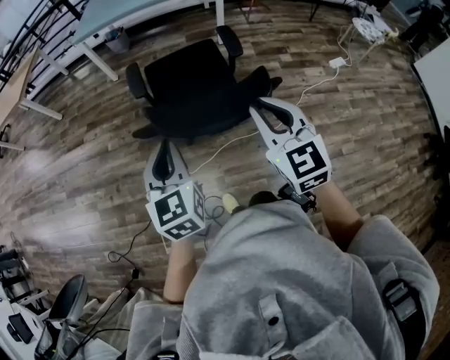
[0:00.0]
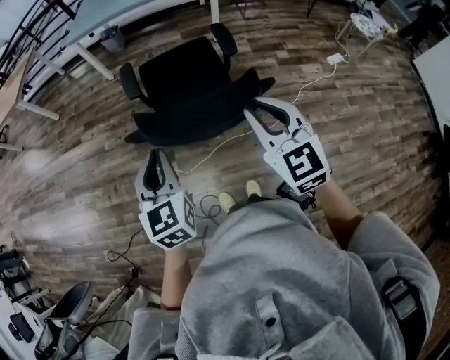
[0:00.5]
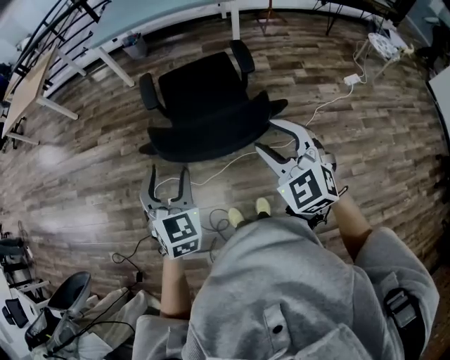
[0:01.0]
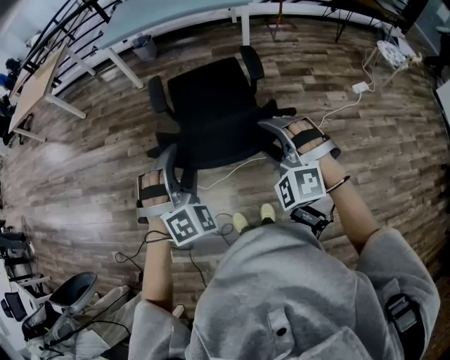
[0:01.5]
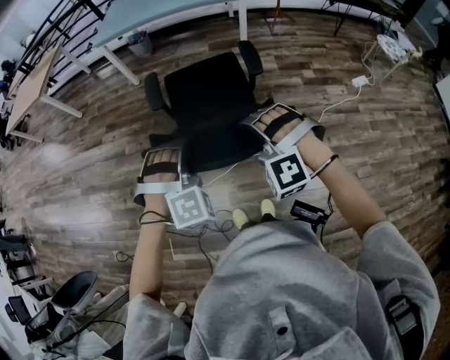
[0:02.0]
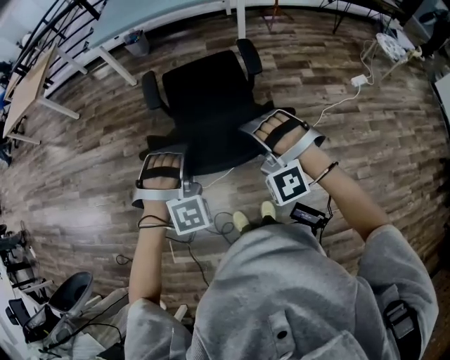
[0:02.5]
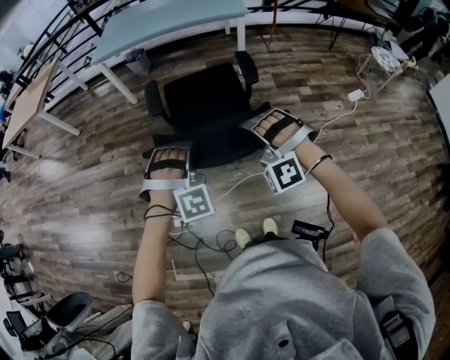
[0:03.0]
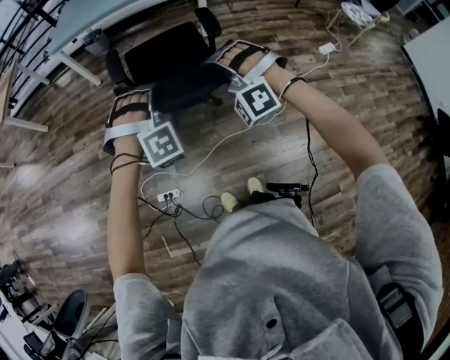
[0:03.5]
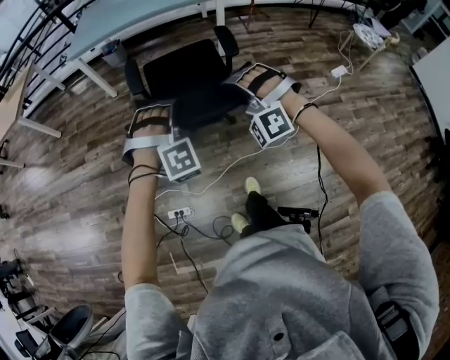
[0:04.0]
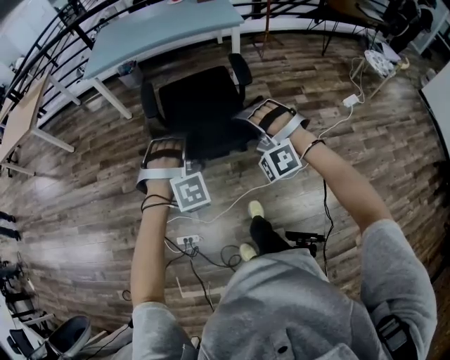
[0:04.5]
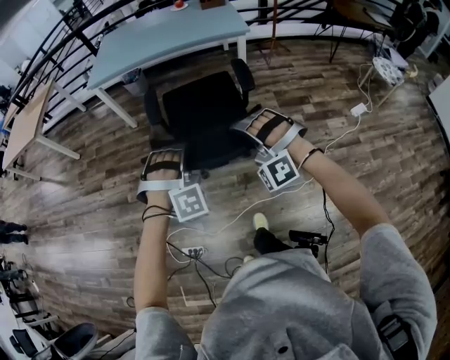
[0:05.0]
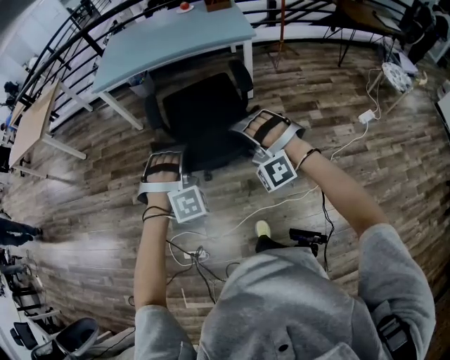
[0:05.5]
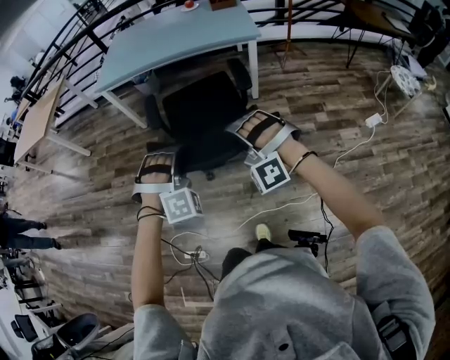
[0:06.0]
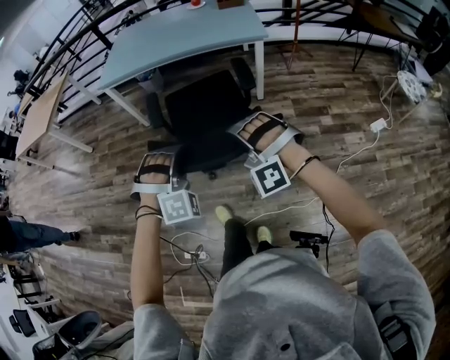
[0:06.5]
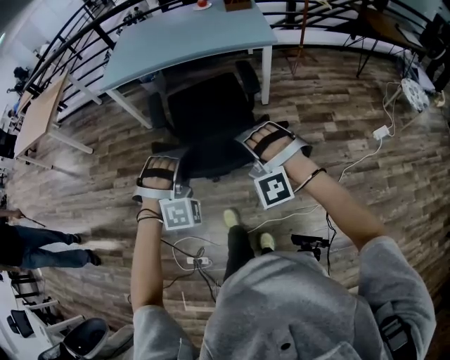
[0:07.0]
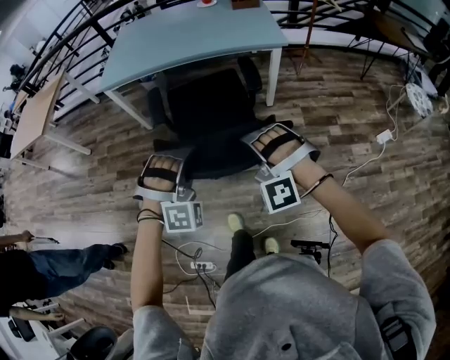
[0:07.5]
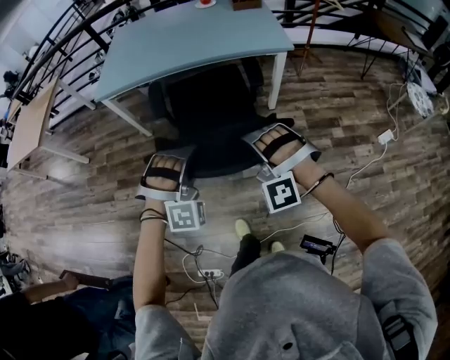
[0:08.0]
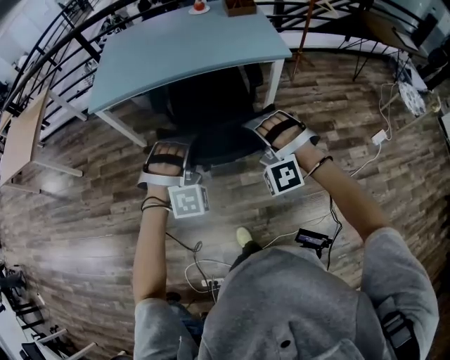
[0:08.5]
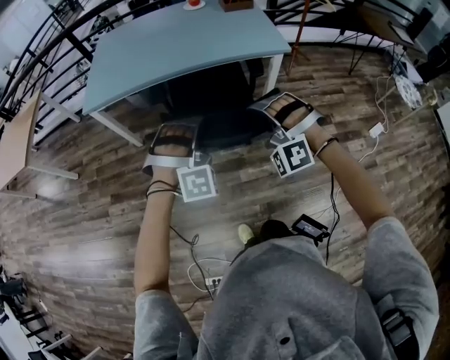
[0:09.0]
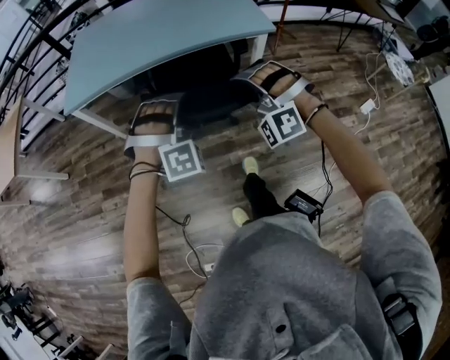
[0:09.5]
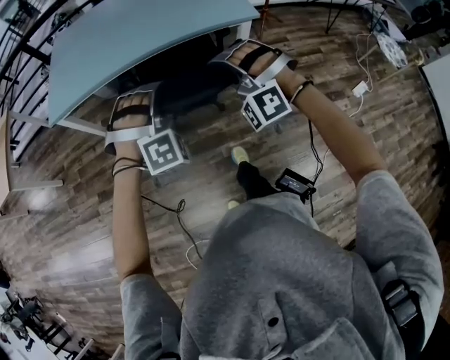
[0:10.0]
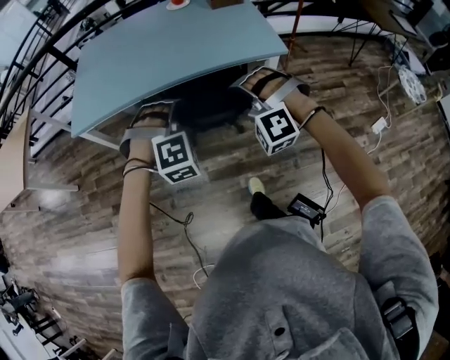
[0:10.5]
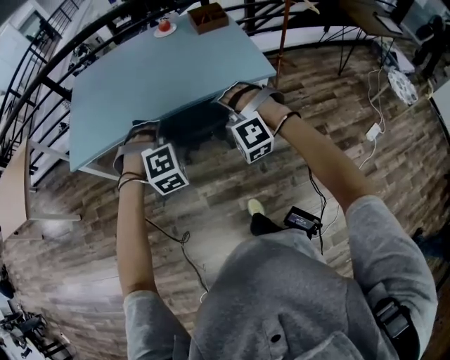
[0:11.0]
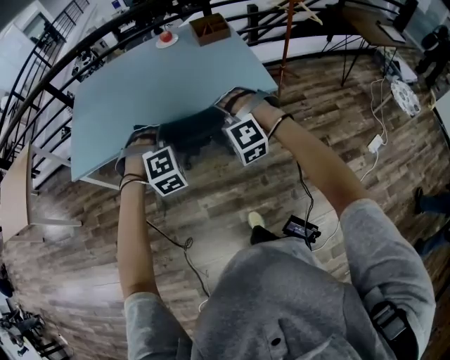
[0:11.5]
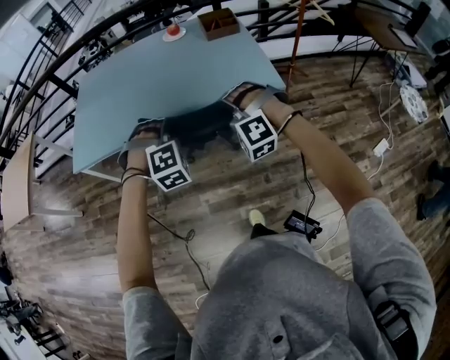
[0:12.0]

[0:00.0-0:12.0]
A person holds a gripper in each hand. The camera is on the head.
0.0 to 2.0 s: The left gripper travels to the right and downward by roughly 10 cm, twists roughly 90 degrees clockwise, seen from behind, and opens; the right gripper travels downward and forward by about 10 cm, rolls counterclockwise, seen from behind, by some 70 degrees, and opens.
2.0 to 4.0 s: Both grippers travel together forward, approximately 15 cm. The right gripper closes up; the left gripper closes.
4.0 to 6.0 s: Both grippers move forward, roughly 15 cm.
6.0 to 8.0 s: Both grippers move forward, some 20 cm.
8.0 to 10.0 s: The grippers both shift forward by roughly 20 cm.
10.0 to 12.0 s: Both grippers travel together forward, about 20 cm.

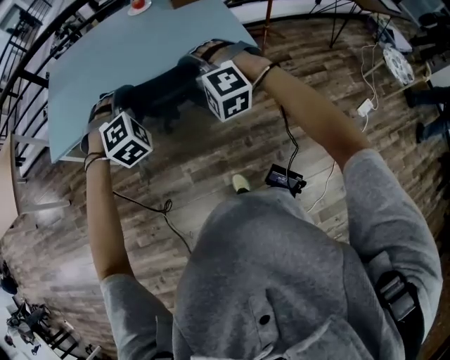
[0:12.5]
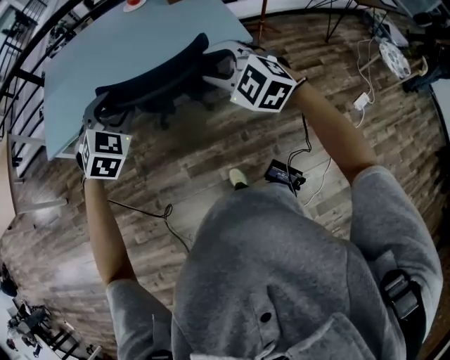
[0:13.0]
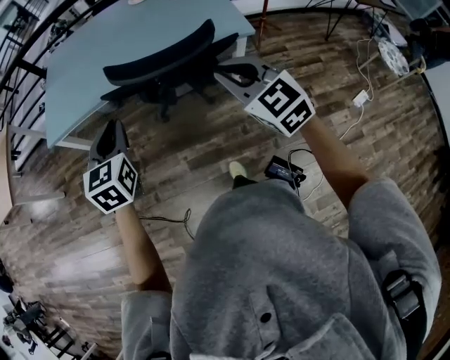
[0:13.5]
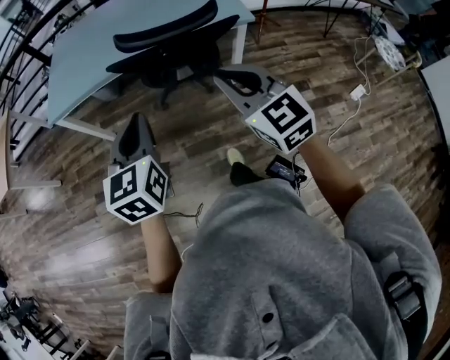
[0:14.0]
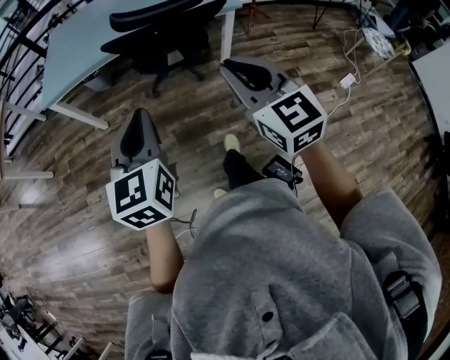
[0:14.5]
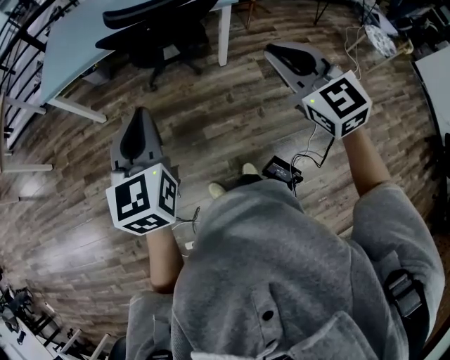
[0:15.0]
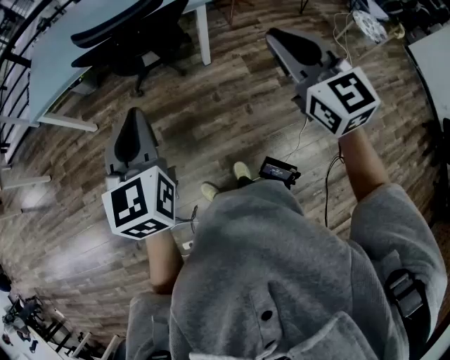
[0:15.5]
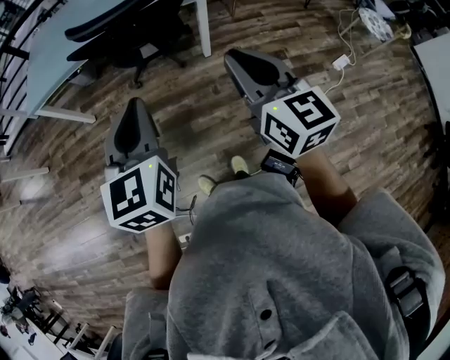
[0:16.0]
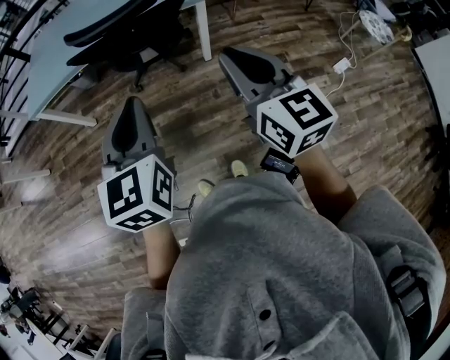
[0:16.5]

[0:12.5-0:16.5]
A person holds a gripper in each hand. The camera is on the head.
12.5 to 14.5 s: The grippers both shift backward by roughly 35 cm. The left gripper rotates around the line of its fingers by roughly 80 degrees, counterclockwise from behind, and closes. The right gripper twists approximately 70 degrees clockwise, seen from behind, and closes up.
14.5 to 16.5 s: Both grippers travel together to the right, approximately 15 cm.

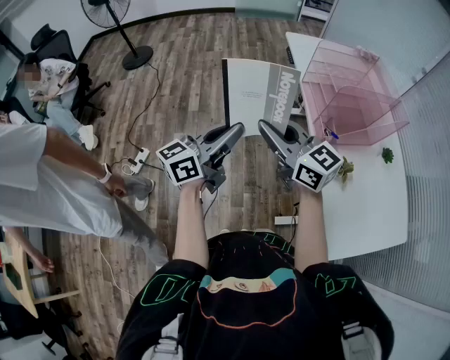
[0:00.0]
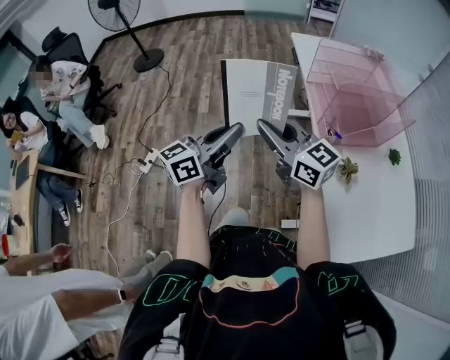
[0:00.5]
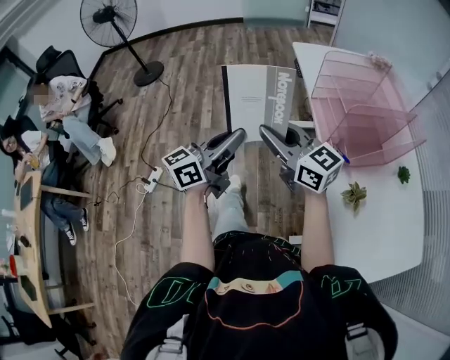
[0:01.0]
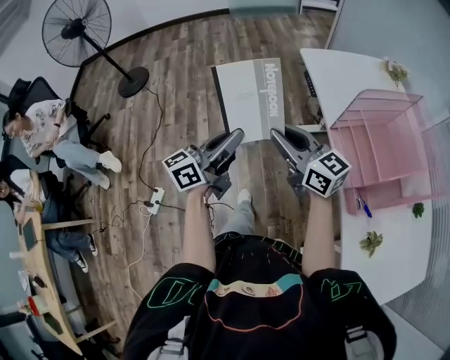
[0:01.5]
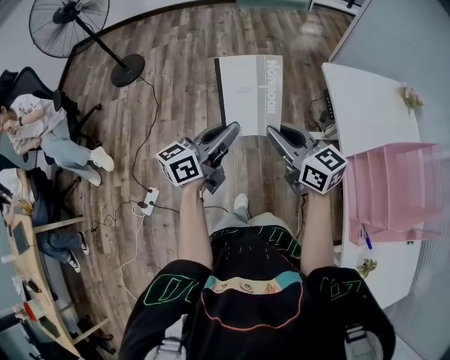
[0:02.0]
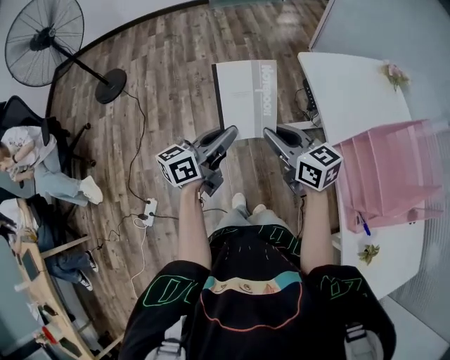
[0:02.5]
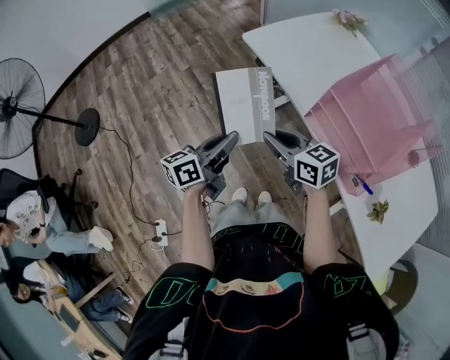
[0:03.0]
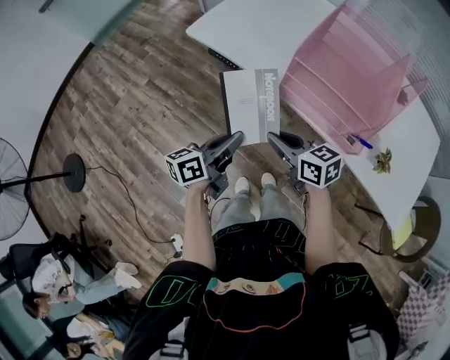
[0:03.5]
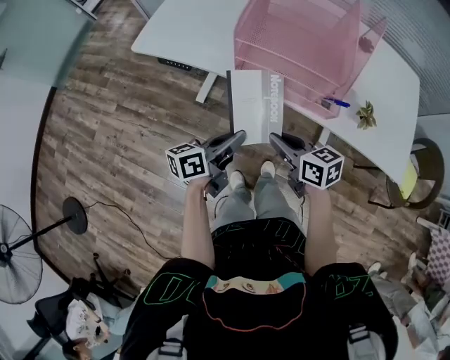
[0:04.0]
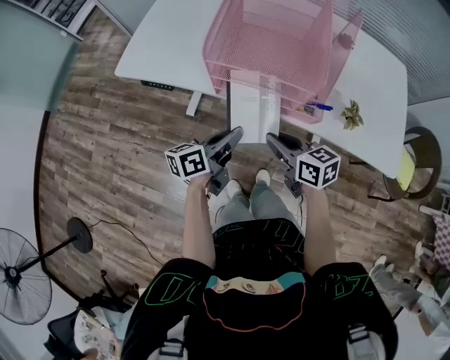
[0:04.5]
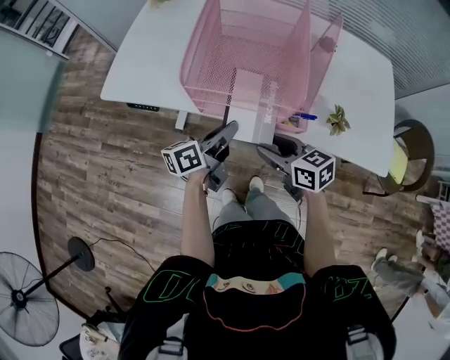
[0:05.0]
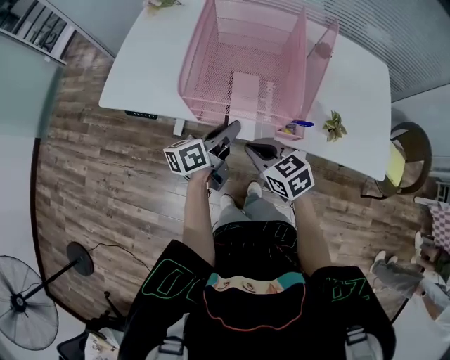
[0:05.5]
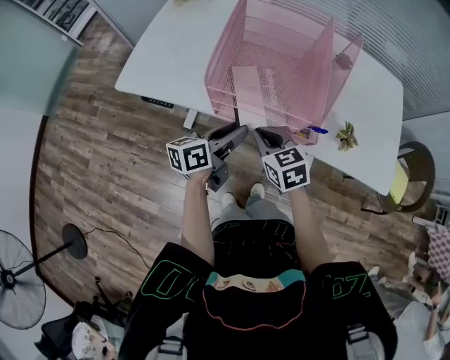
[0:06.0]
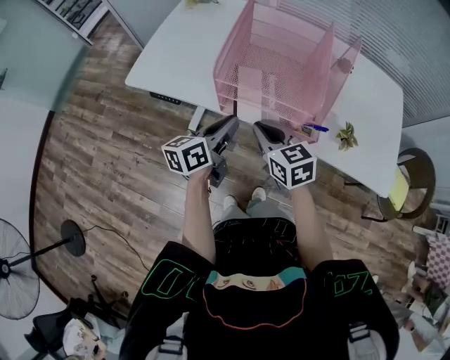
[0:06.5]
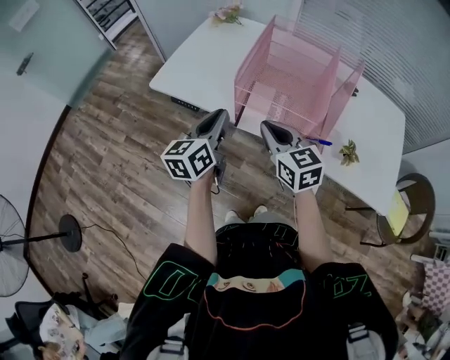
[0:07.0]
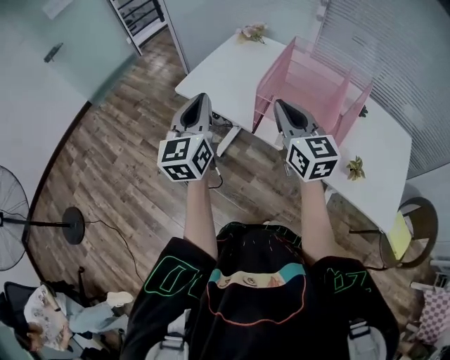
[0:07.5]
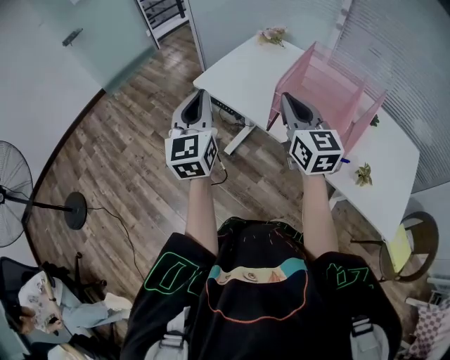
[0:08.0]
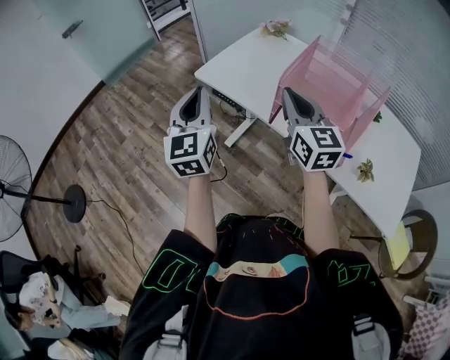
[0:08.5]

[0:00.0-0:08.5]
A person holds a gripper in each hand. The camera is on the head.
0.0 to 2.0 s: Both grippers are carried forward, approximately 50 cm.
2.0 to 4.0 s: The right gripper ends up some 35 cm from where it was, and turns by roughly 70 degrees, while the left gripper moves approximately 30 cm, and turns by roughly 70 degrees.
4.0 to 6.5 s: Both grippers move forward and upward, some 10 cm. The left gripper opens, then closes again. The right gripper turns by approximately 20 degrees, and opens, then closes once more.
6.5 to 8.5 s: The left gripper ends up roughly 30 cm from where it was, and turns by about 70 degrees. The right gripper moves upward, approximately 20 cm, and changes its angle by about 30 degrees.

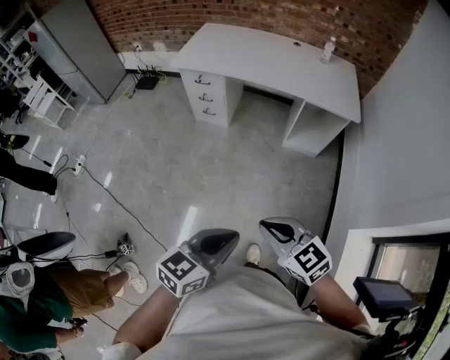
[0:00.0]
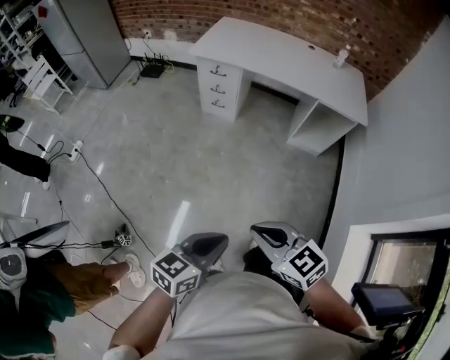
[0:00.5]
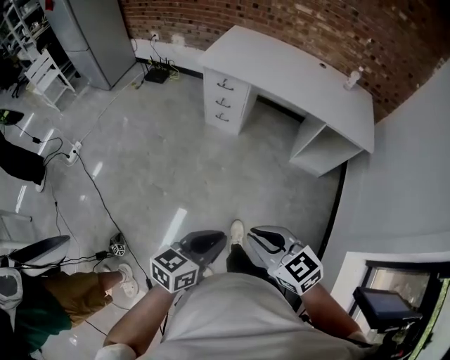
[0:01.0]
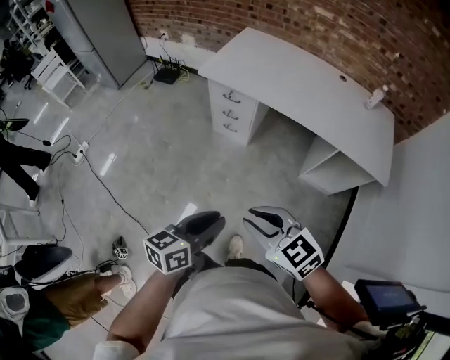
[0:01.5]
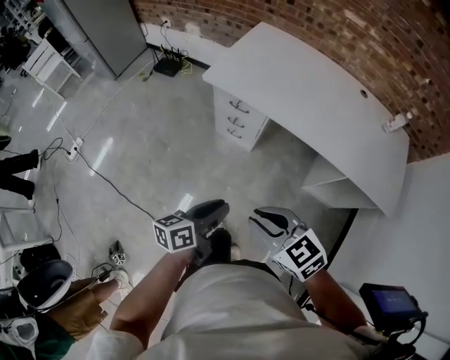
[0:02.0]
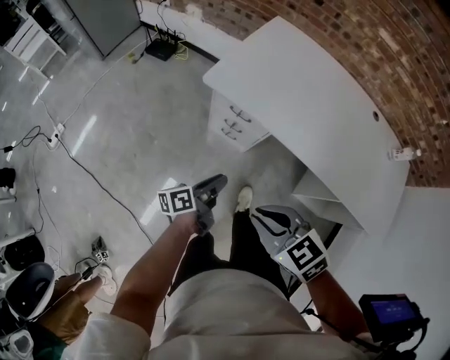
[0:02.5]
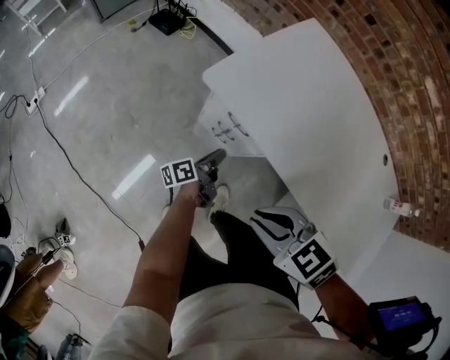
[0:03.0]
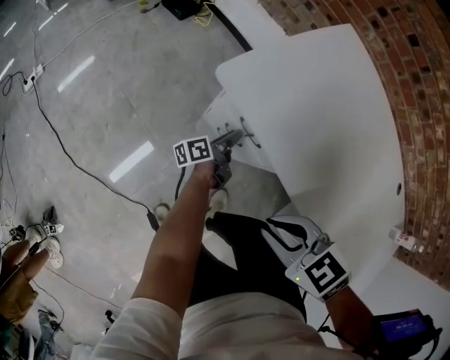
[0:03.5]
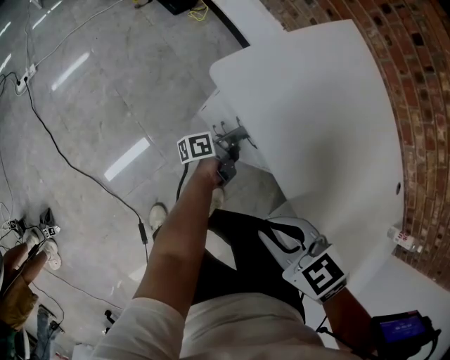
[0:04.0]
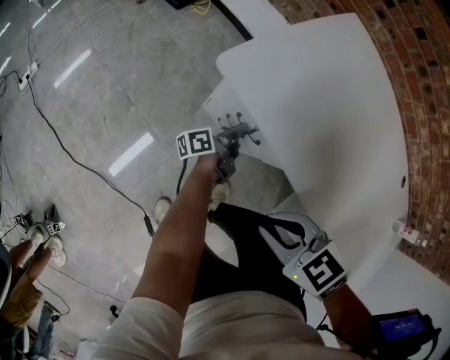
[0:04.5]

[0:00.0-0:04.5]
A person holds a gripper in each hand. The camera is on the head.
0.0 to 2.0 s: Both grippers are carried forward, approximately 50 cm. The left gripper turns by about 40 degrees.
2.0 to 4.5 s: The left gripper shifts by some 60 cm, and rotates some 50 degrees; the right gripper changes place by roughly 35 cm, and swivels about 30 degrees.
